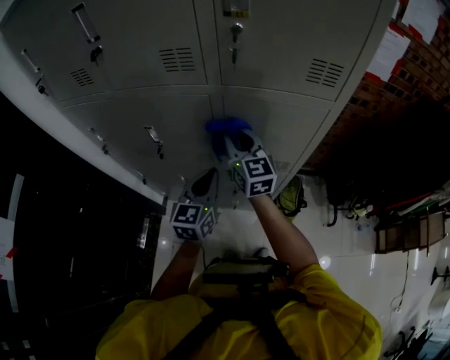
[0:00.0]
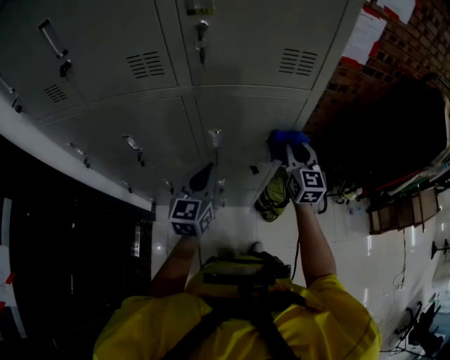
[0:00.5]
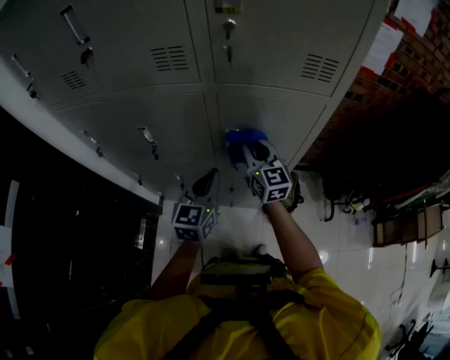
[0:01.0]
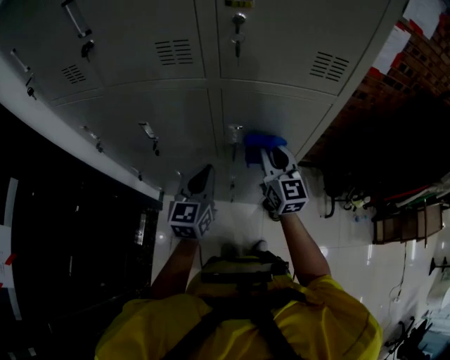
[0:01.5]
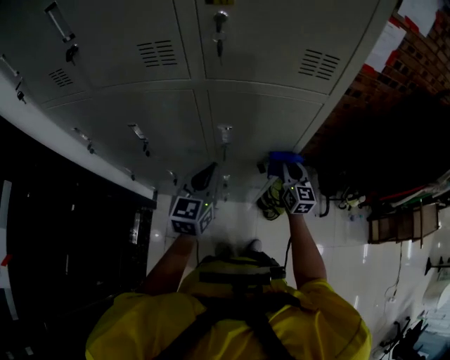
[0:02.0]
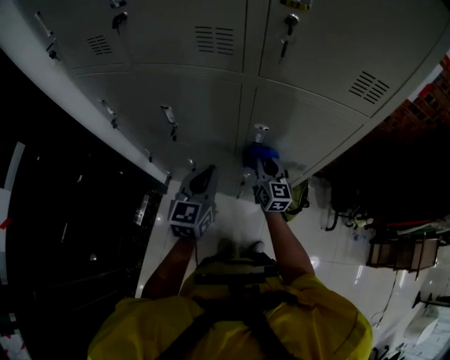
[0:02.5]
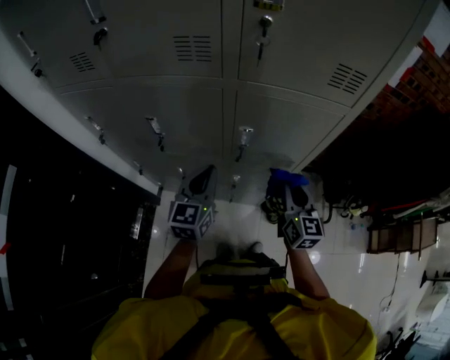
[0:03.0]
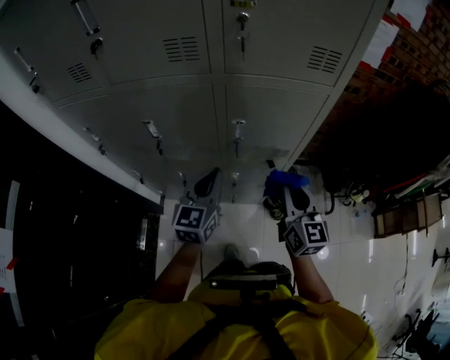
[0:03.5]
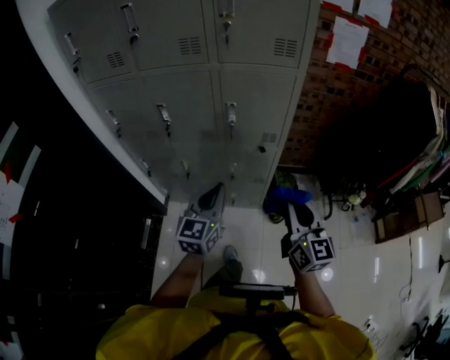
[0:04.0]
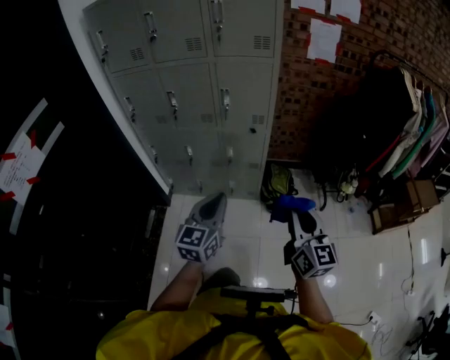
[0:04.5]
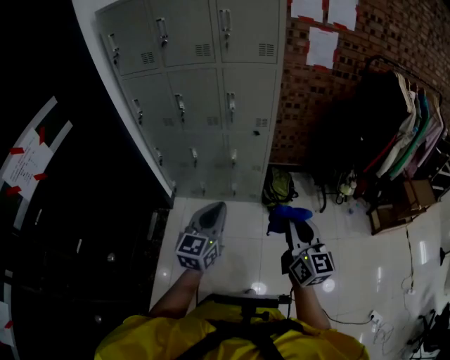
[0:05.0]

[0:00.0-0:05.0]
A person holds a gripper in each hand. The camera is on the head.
0:00.0 to 0:02.5: The right gripper goes left and right, some 25 cm each way, reversing 3 times. Meanwhile the left gripper swings left and right, roughly 10 cm each way, with 3 reversals.
0:02.5 to 0:05.0: The pair of grippers is taken backward, some 60 cm.

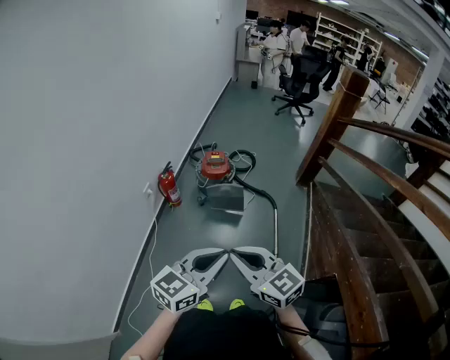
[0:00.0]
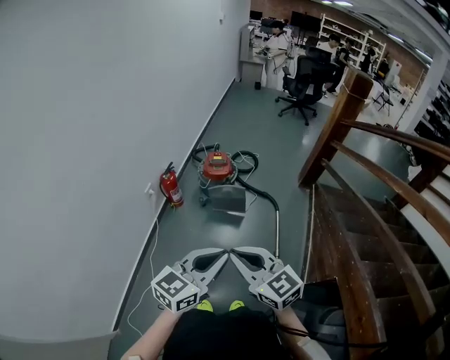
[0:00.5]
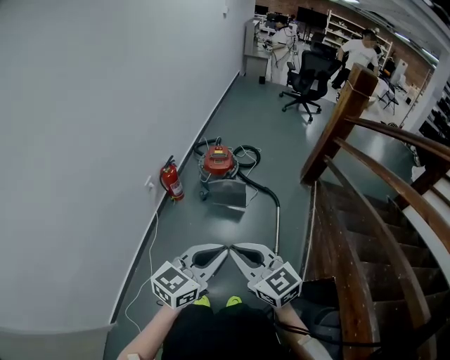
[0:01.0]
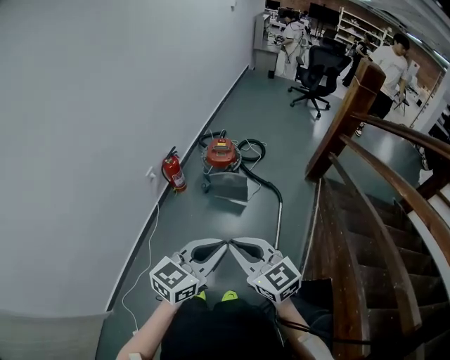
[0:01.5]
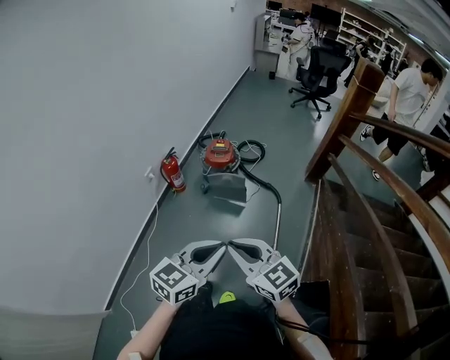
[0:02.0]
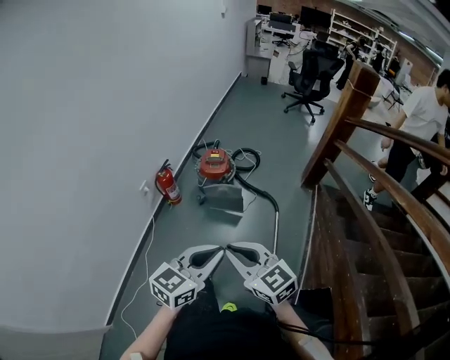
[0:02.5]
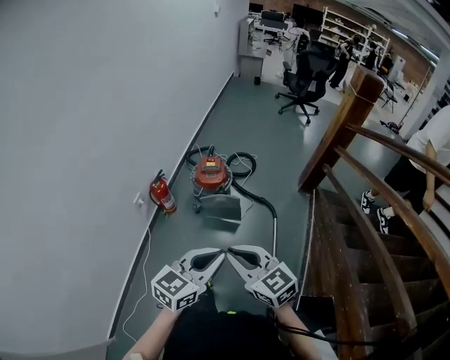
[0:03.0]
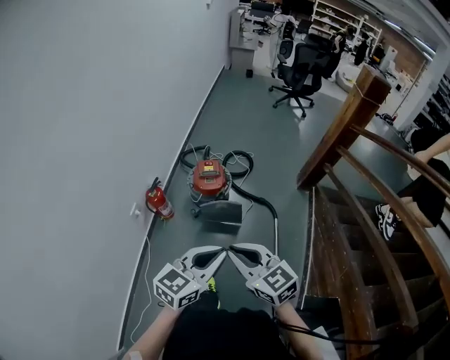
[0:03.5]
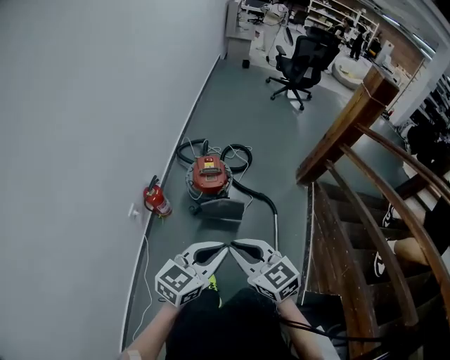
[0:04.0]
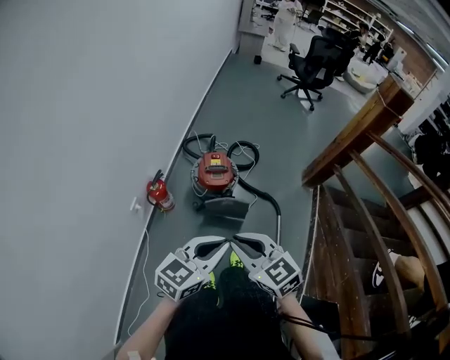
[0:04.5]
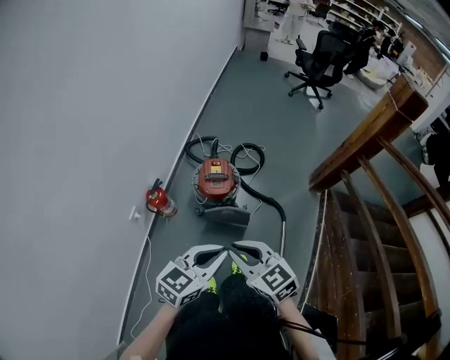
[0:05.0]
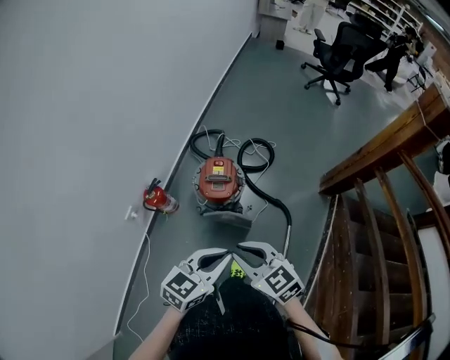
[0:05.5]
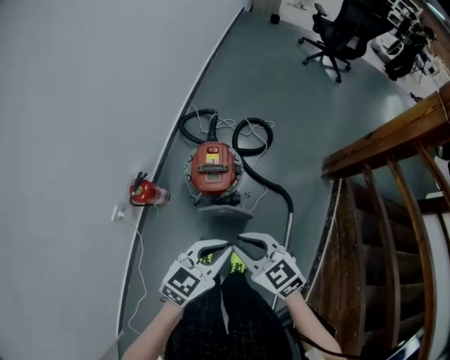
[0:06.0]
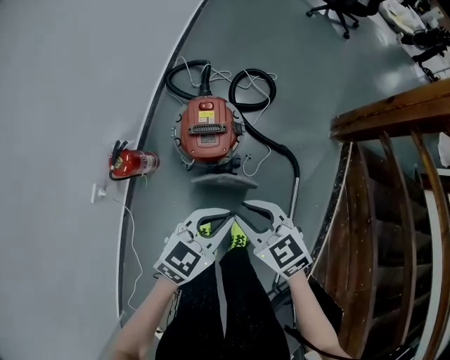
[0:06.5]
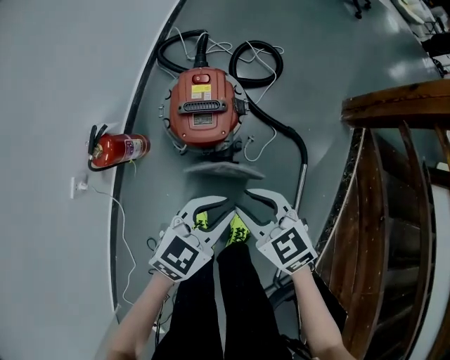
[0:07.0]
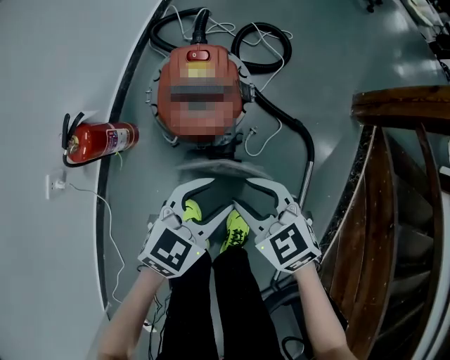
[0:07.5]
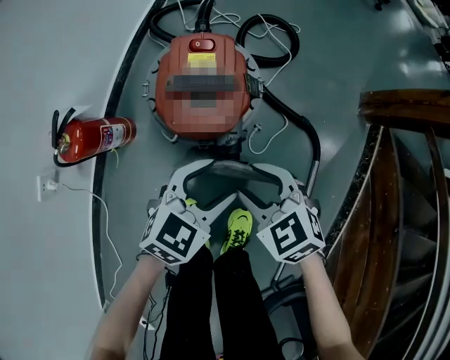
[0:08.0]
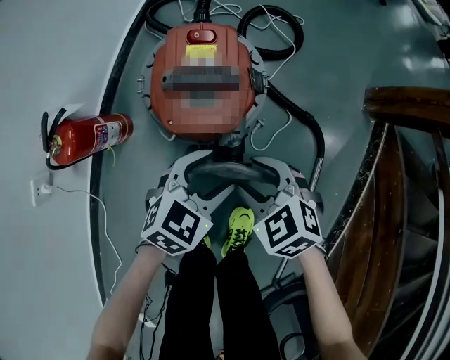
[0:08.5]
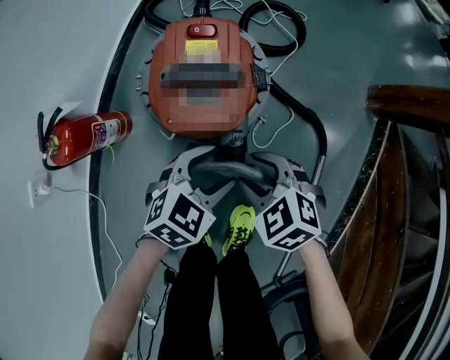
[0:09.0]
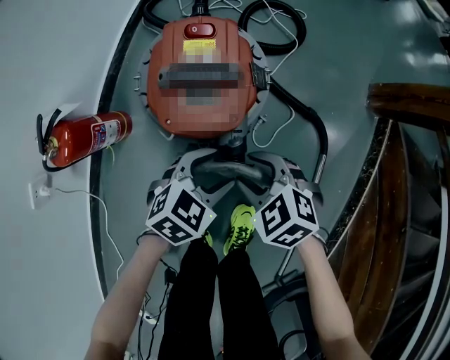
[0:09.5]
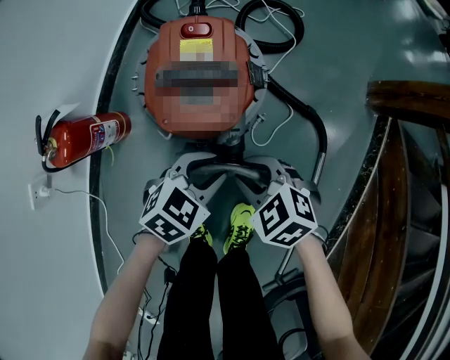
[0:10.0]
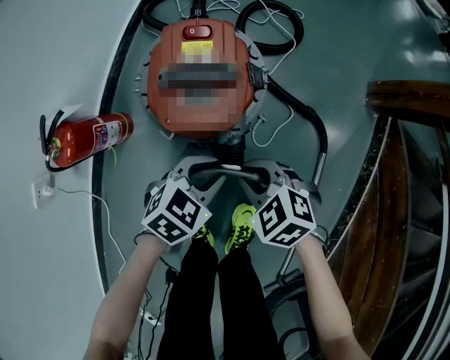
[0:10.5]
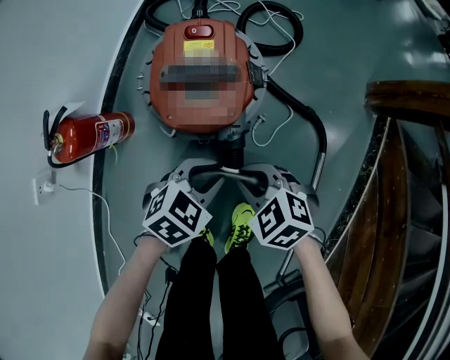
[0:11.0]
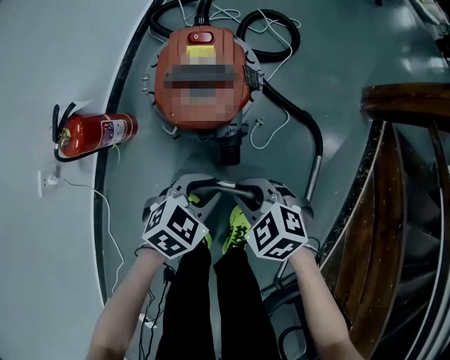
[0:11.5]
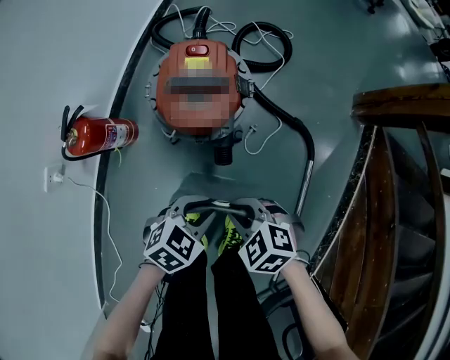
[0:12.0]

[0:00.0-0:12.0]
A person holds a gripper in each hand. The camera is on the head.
0:00.0 to 0:02.0: The two grippers go approximately 5 cm to the right.
0:02.0 to 0:04.0: The grippers both shift forward by about 25 cm.
0:04.0 to 0:06.0: Both grippers travel together forward and downward, roughly 25 cm.
0:06.0 to 0:08.0: The grippers both shift downward by some 35 cm. The left gripper opens its fingers, while the right gripper opens its fingers.
0:08.0 to 0:10.0: The two grippers go about 10 cm downward. The left gripper closes up.
0:10.0 to 0:12.0: The right gripper changes place by about 10 cm, while the left gripper shifts by roughly 10 cm.

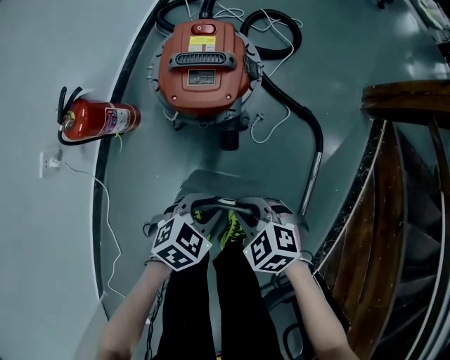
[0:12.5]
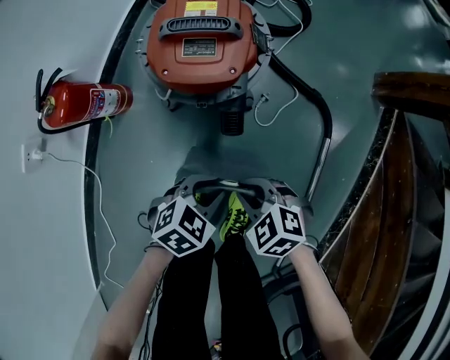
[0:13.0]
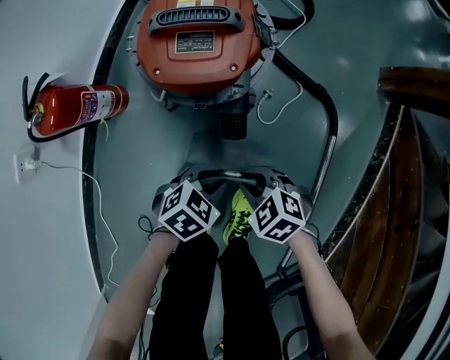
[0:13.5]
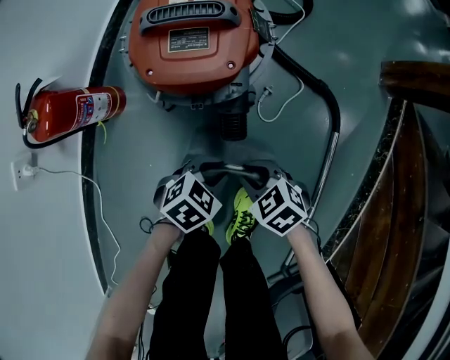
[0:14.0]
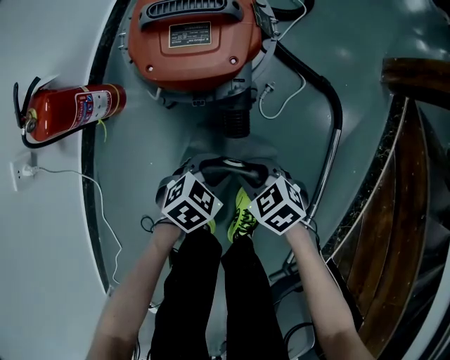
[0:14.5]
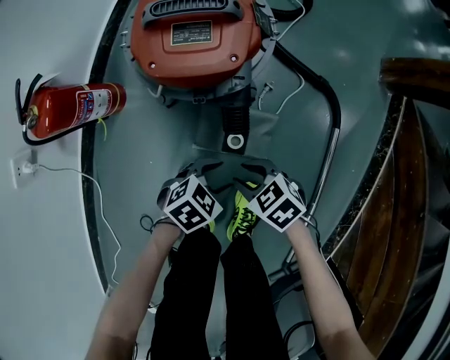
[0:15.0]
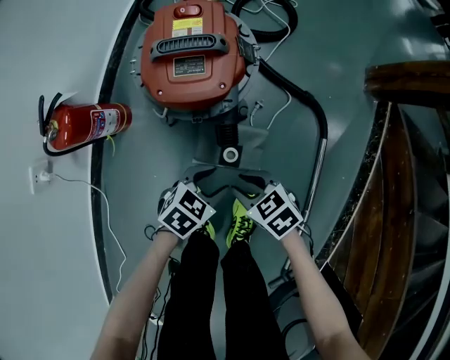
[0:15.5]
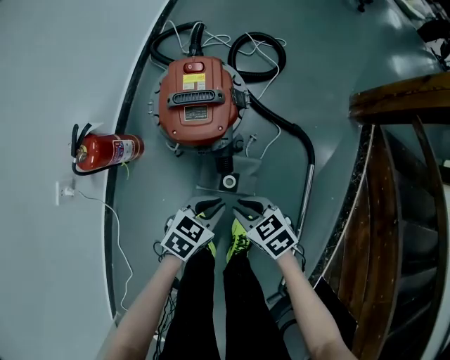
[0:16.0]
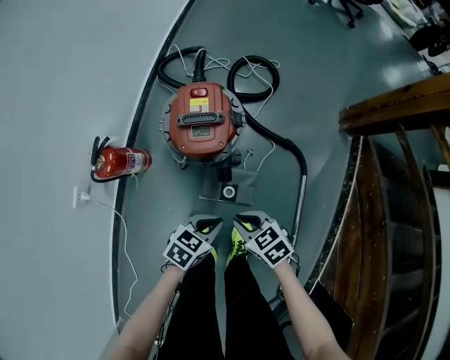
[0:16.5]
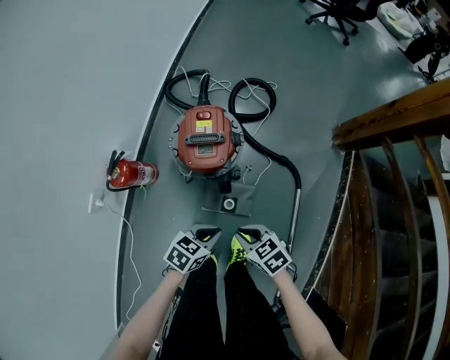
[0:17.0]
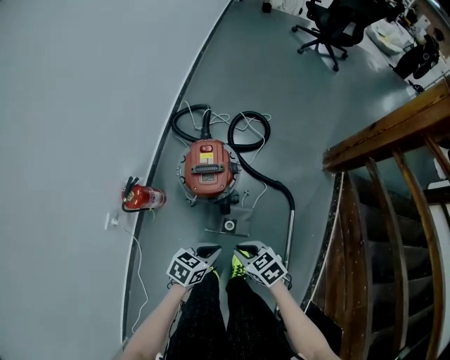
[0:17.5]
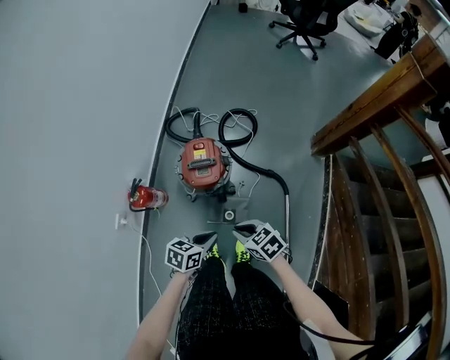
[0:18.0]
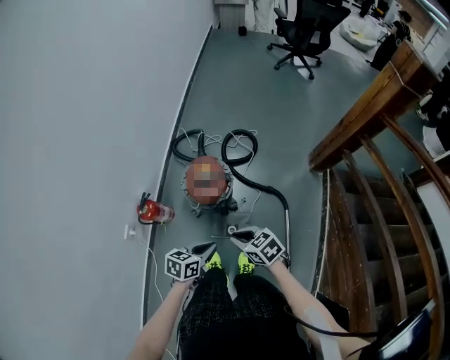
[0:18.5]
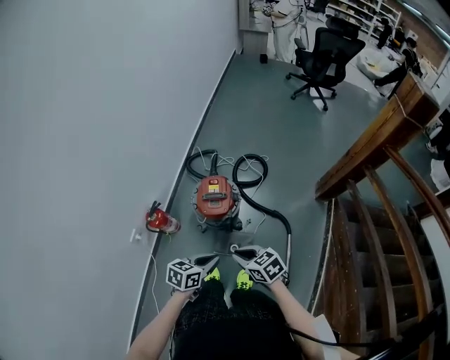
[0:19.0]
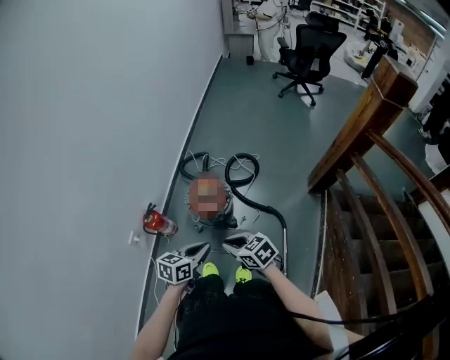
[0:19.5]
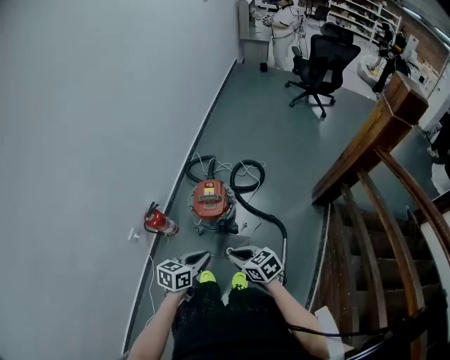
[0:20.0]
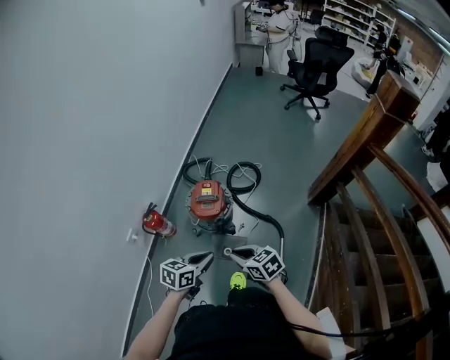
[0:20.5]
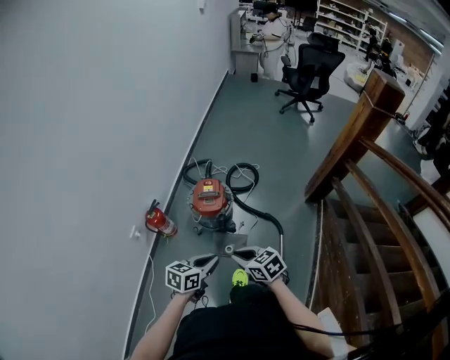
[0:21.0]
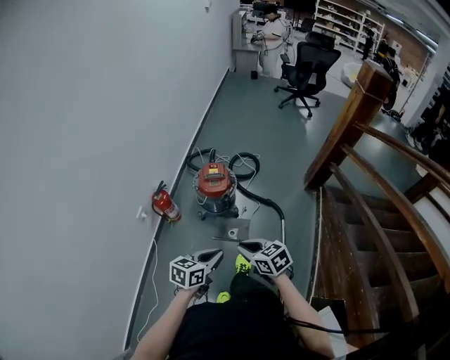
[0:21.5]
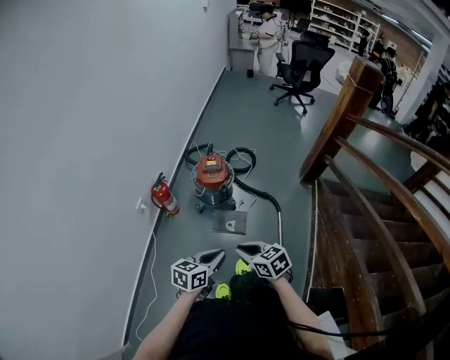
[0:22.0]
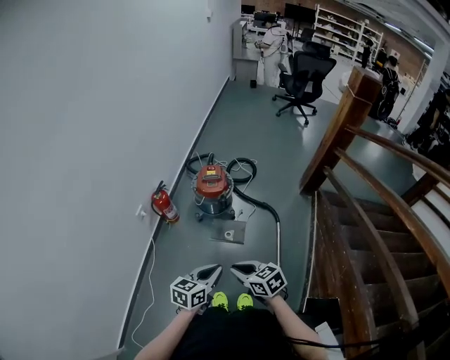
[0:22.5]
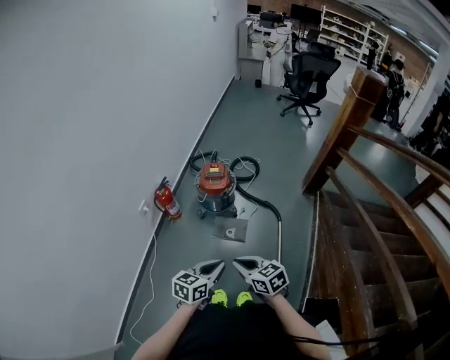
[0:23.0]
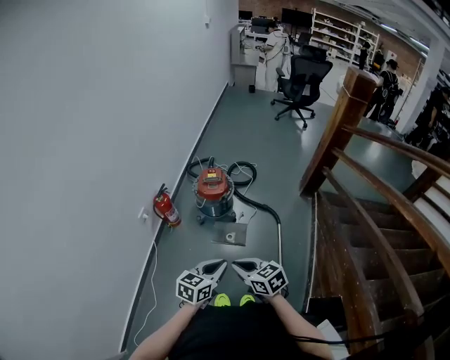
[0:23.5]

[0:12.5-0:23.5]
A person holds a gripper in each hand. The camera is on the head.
0:12.5 to 0:14.5: The grippers both shift downward by roughly 15 cm.
0:14.5 to 0:16.0: Both grippers move upward, approximately 15 cm.
0:16.0 to 0:18.0: The two grippers go roughly 25 cm upward.
0:18.0 to 0:20.0: Both grippers move upward, roughly 15 cm.
0:20.0 to 0:21.5: The grippers both shift backward by about 20 cm.
0:21.5 to 0:23.5: The two grippers go some 10 cm backward.
